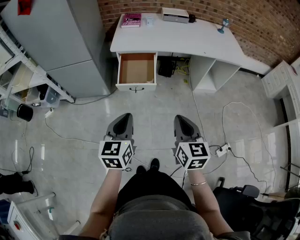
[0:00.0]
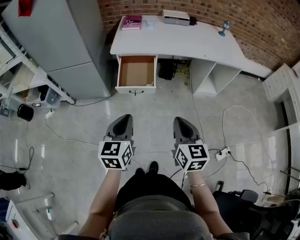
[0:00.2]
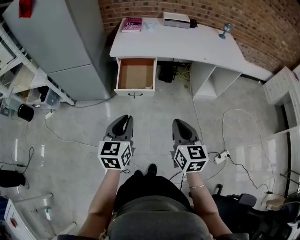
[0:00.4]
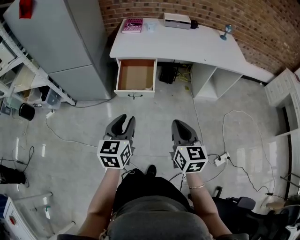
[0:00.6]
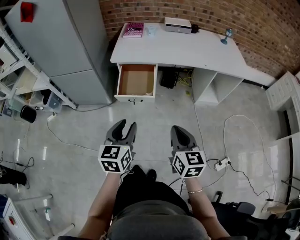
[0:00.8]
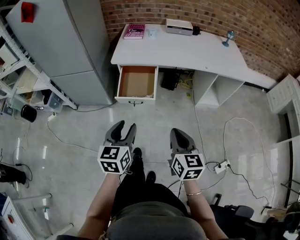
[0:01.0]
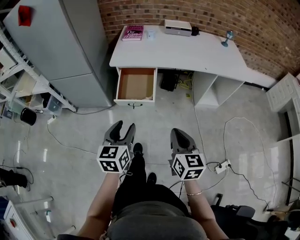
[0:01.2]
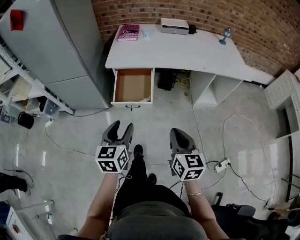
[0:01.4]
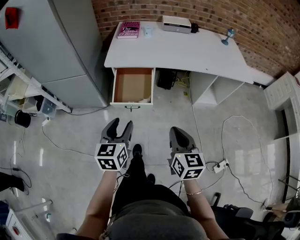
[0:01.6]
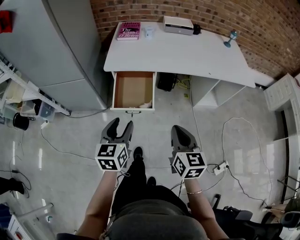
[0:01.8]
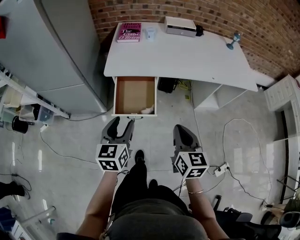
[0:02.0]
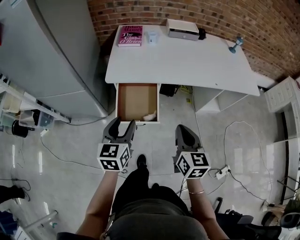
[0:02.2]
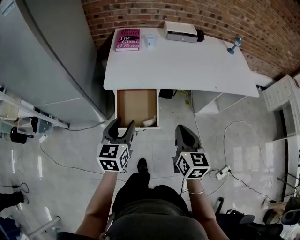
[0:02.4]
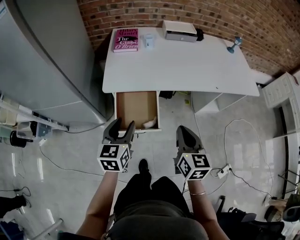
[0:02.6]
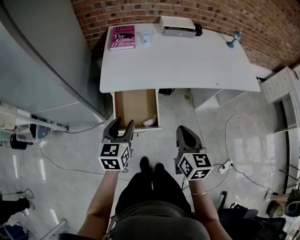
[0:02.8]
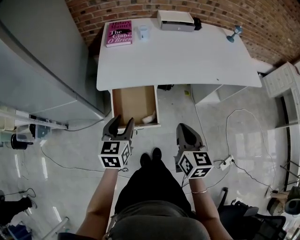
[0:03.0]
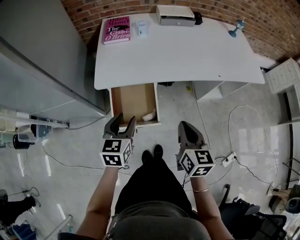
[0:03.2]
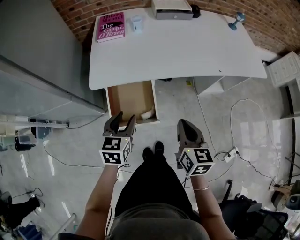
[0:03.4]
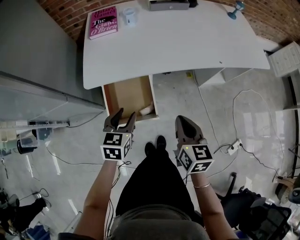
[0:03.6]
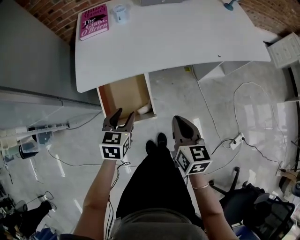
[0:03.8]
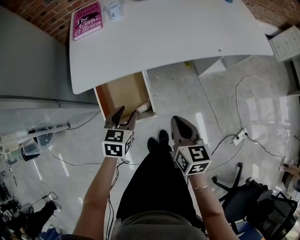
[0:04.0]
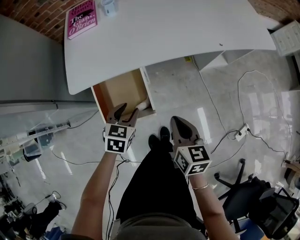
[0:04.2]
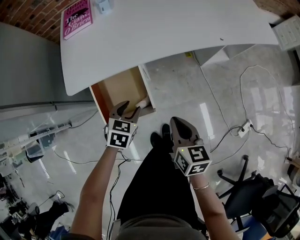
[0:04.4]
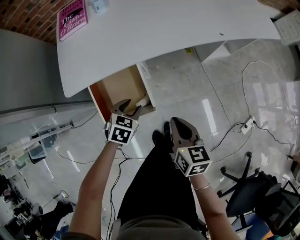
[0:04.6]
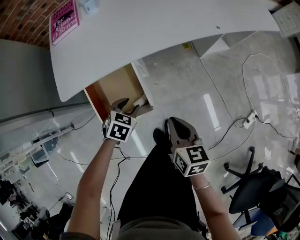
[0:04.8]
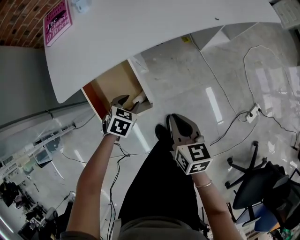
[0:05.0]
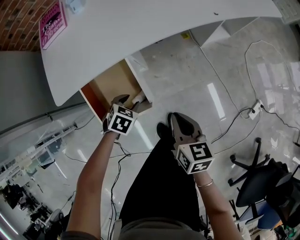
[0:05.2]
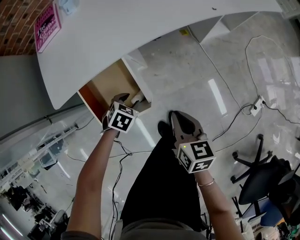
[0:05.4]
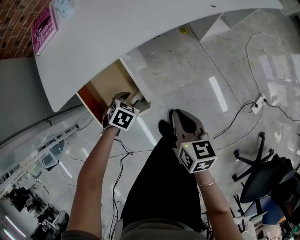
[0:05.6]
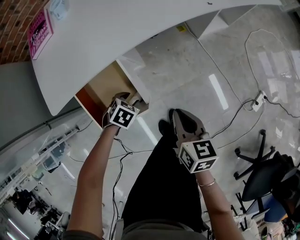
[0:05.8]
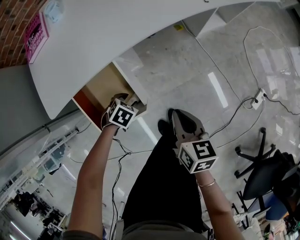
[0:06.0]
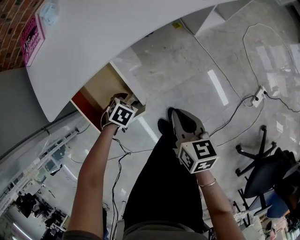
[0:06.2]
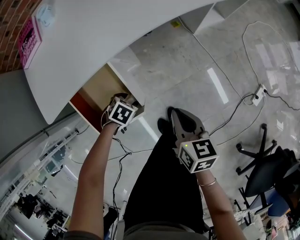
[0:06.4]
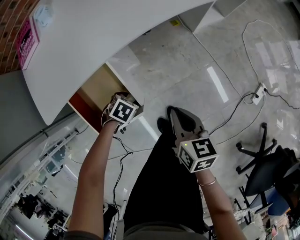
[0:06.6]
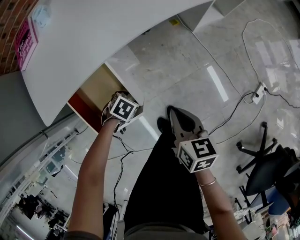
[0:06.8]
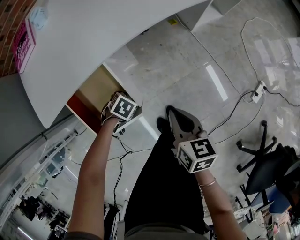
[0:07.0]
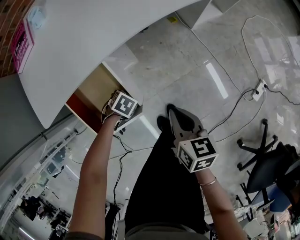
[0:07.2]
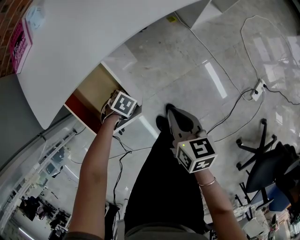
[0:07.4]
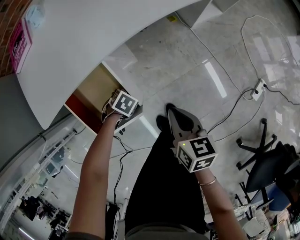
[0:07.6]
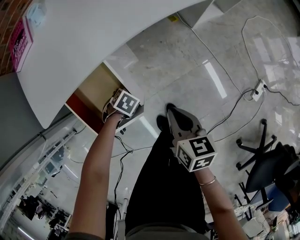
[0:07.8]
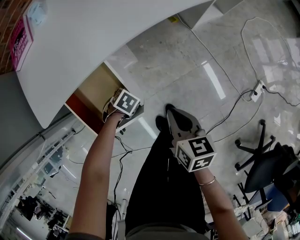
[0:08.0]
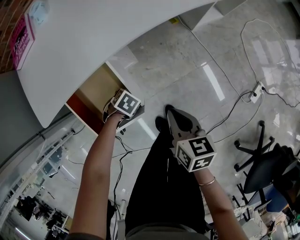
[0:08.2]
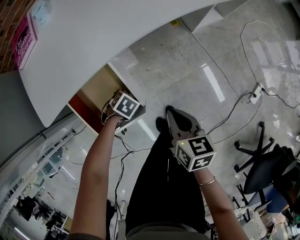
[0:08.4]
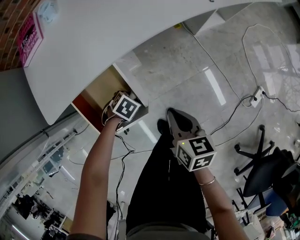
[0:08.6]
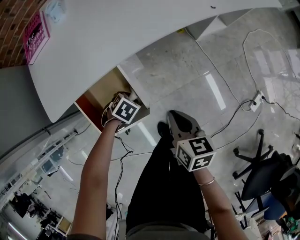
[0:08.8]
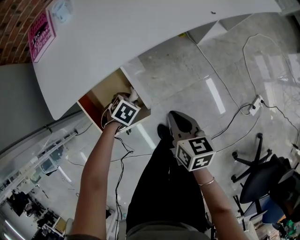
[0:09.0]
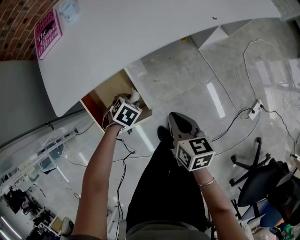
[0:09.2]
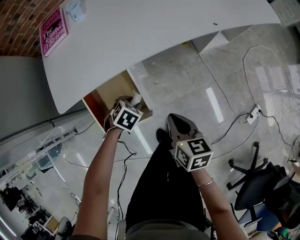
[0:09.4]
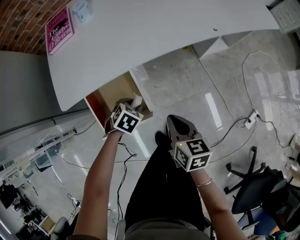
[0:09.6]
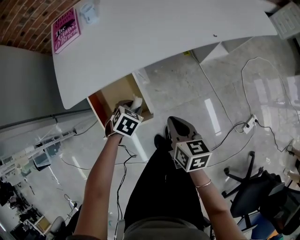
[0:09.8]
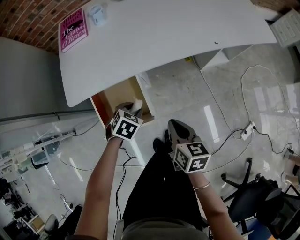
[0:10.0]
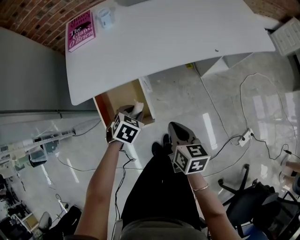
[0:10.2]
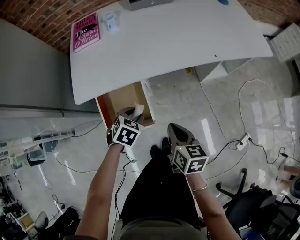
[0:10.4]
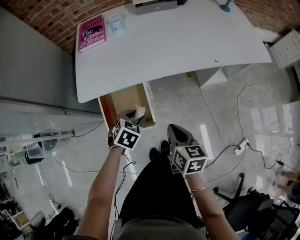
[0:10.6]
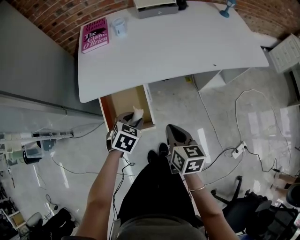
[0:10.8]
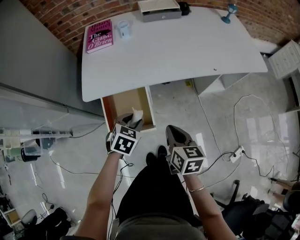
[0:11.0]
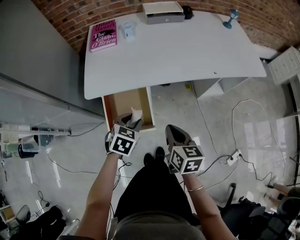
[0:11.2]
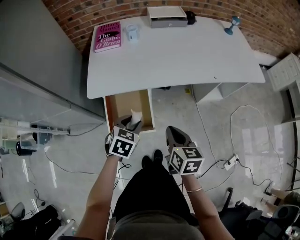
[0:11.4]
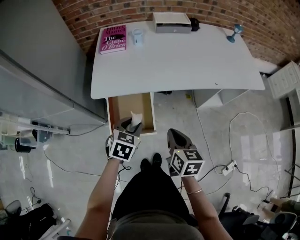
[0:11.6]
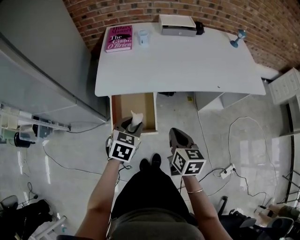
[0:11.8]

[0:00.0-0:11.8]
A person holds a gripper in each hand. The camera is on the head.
0:00.0 to 0:01.4: Both grippers move forward, roughly 10 cm. The left gripper opens up.
0:01.4 to 0:03.0: The grippers both shift forward by roughly 25 cm.
0:03.0 to 0:04.4: The right gripper travels downward by about 15 cm. Meanwhile the left gripper travels downward and to the right by roughly 20 cm, and rotates roughly 40 degrees.
0:04.4 to 0:06.0: The right gripper shifts about 5 cm downward, while the left gripper heads downward, covering approximately 15 cm, and changes its angle by some 40 degrees.
0:06.0 to 0:07.4: The left gripper travels downward by about 5 cm.
0:07.4 to 0:08.8: The left gripper moves roughly 5 cm.
0:08.8 to 0:10.4: The right gripper is displaced upward by approximately 10 cm. Meanwhile the left gripper goes roughly 20 cm upward, and rotates approximately 30 degrees.
0:10.4 to 0:11.8: The right gripper is displaced upward by roughly 10 cm. Meanwhile the left gripper goes some 10 cm upward, and rotates about 20 degrees.

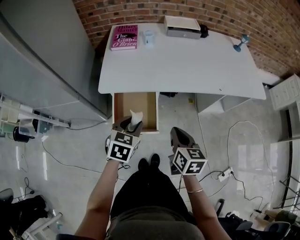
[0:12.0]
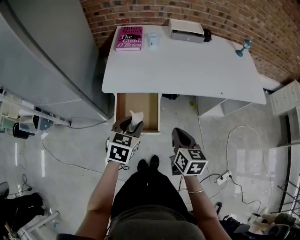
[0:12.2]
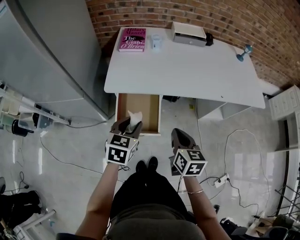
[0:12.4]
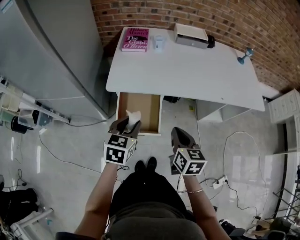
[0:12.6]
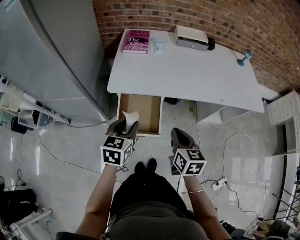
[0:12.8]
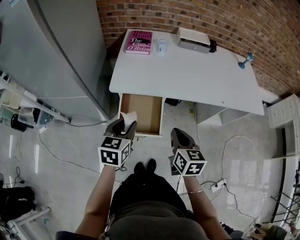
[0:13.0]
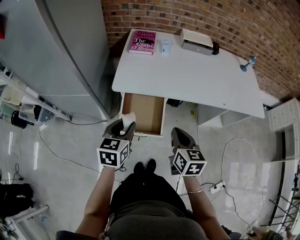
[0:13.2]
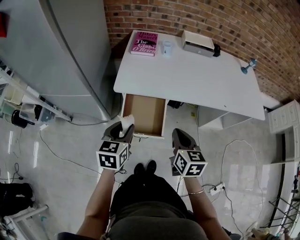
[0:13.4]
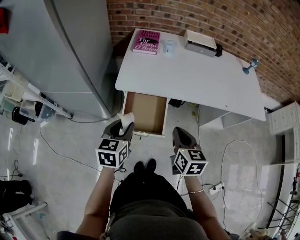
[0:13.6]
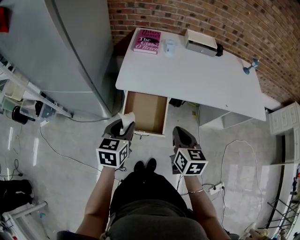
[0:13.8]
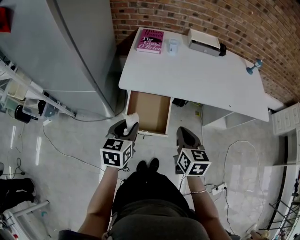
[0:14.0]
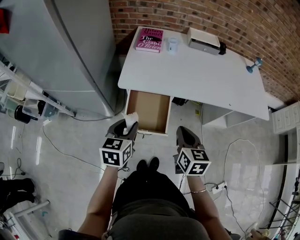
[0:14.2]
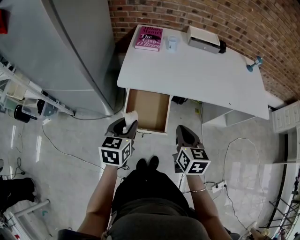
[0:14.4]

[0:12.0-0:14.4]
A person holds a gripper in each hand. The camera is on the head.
0:12.0 to 0:13.2: The right gripper ends up approximately 5 cm from where it was. Meanwhile the left gripper is displaced to the left by some 10 cm, and changes its angle by approximately 20 degrees.
0:13.2 to 0:14.4: The grippers move only a little.

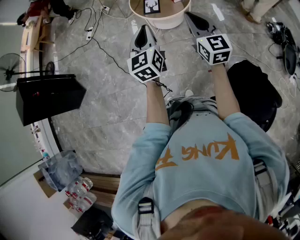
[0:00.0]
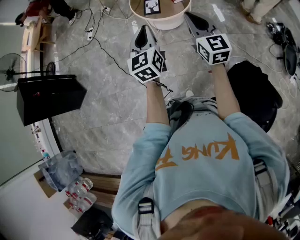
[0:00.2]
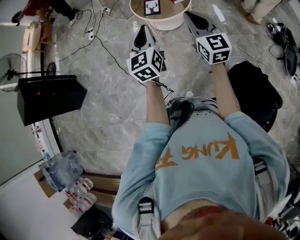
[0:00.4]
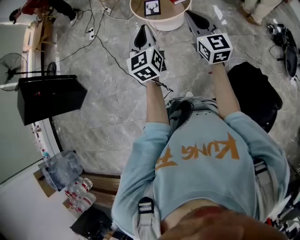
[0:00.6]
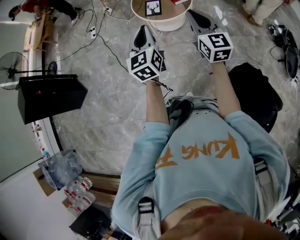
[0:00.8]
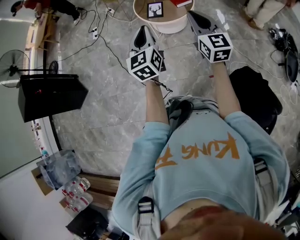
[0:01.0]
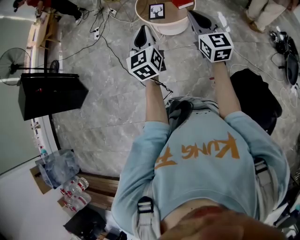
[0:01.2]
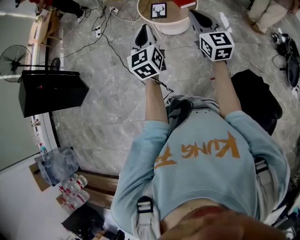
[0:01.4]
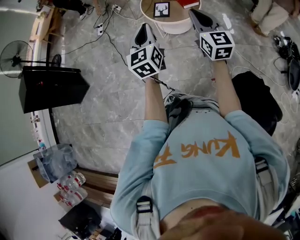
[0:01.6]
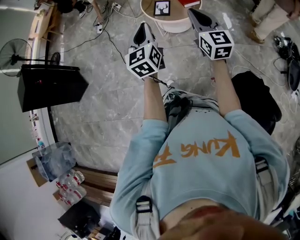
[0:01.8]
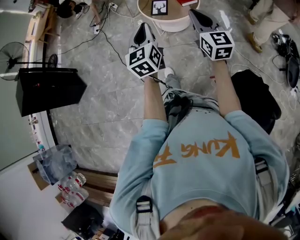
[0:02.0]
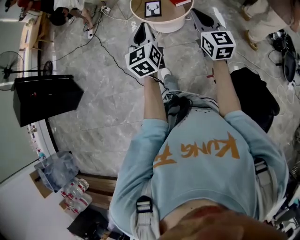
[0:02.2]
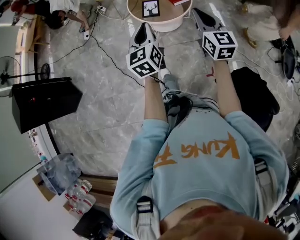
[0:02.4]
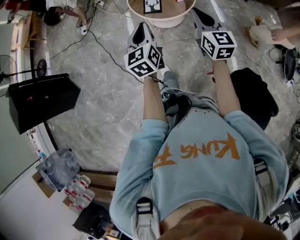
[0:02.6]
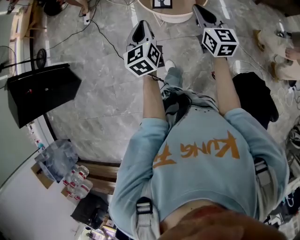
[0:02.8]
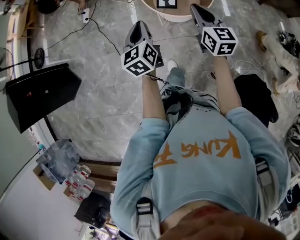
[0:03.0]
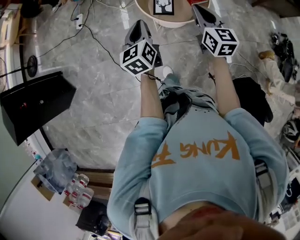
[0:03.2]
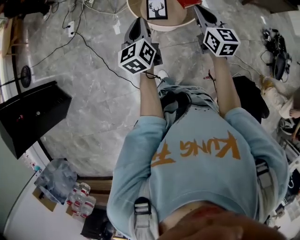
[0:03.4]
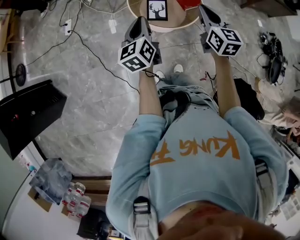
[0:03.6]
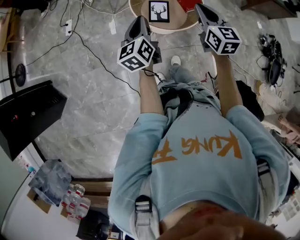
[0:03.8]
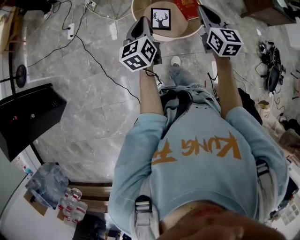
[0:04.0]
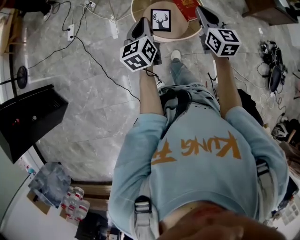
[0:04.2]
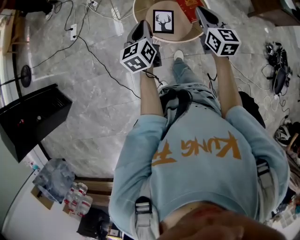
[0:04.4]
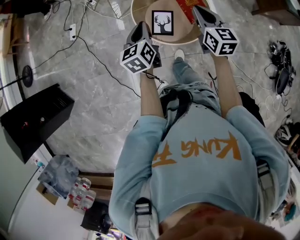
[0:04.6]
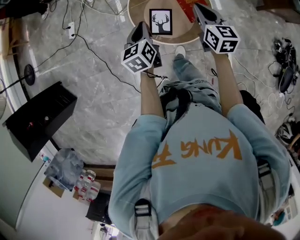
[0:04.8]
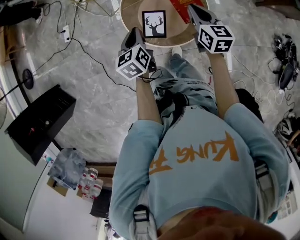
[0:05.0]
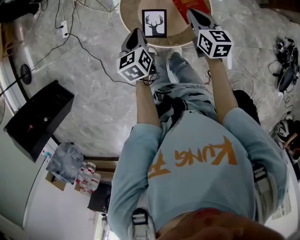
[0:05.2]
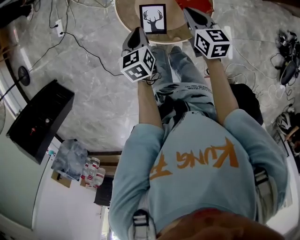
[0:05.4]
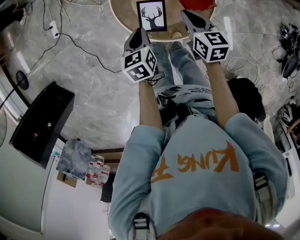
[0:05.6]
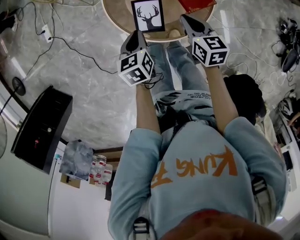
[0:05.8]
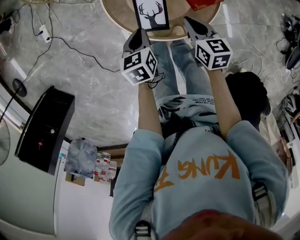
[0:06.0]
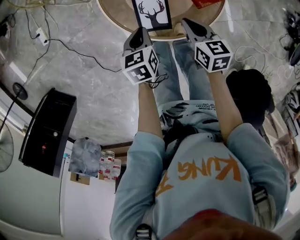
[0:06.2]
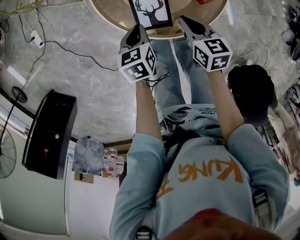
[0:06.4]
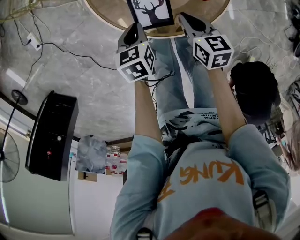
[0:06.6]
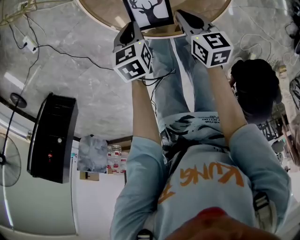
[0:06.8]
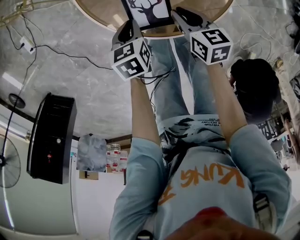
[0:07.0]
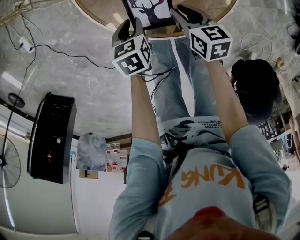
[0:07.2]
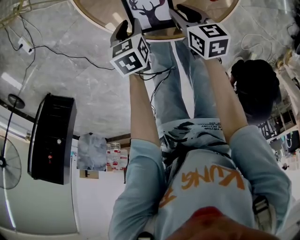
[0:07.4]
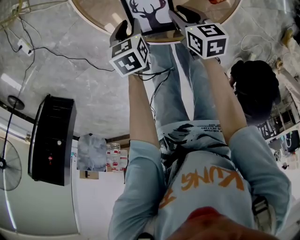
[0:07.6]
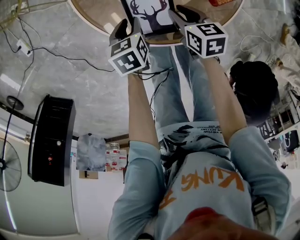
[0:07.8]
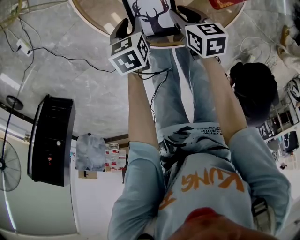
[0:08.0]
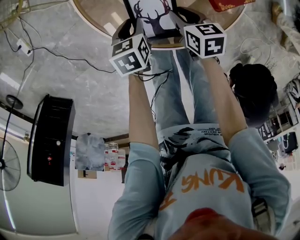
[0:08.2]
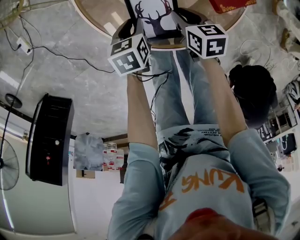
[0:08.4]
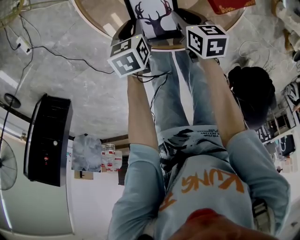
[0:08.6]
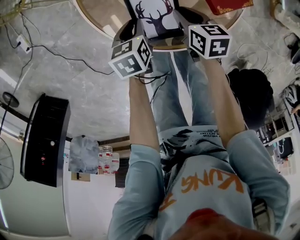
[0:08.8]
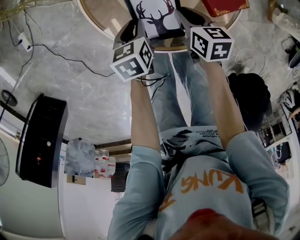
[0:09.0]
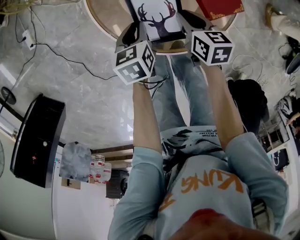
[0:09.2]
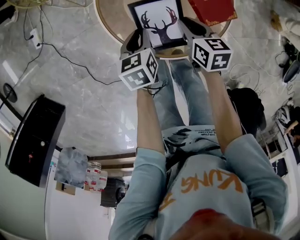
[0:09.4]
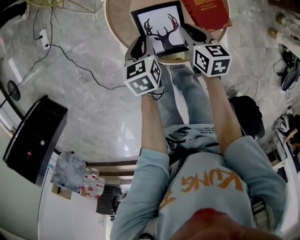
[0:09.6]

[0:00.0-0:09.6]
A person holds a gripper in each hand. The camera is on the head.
0:00.0 to 0:01.6: The grippers stay close to where they were, moving slightly.
0:01.6 to 0:03.2: The right gripper is displaced forward by roughly 30 cm, while the left gripper heads forward, to the left and downward, covering approximately 35 cm.
0:03.2 to 0:04.8: The two grippers go approximately 30 cm forward.
0:04.8 to 0:06.4: Both grippers move downward, roughly 35 cm. The left gripper turns by roughly 30 degrees, while the right gripper changes its angle by roughly 30 degrees.
0:06.4 to 0:08.0: Both grippers move downward, roughly 15 cm. The left gripper opens up. The right gripper opens up.
0:08.0 to 0:09.6: Both grippers move upward, about 20 cm. The left gripper changes its angle by about 20 degrees.
